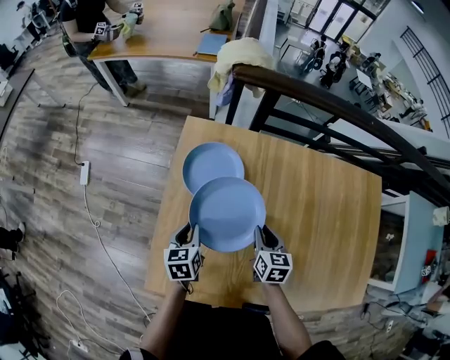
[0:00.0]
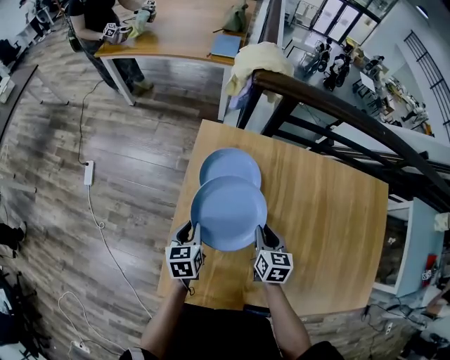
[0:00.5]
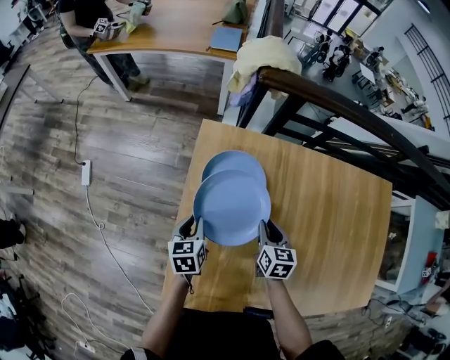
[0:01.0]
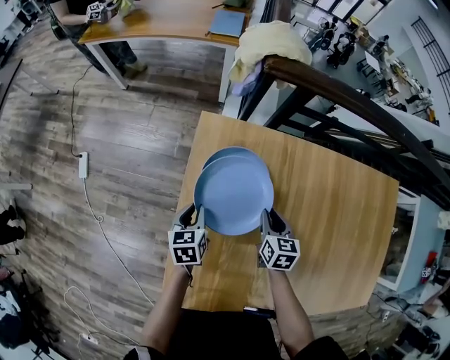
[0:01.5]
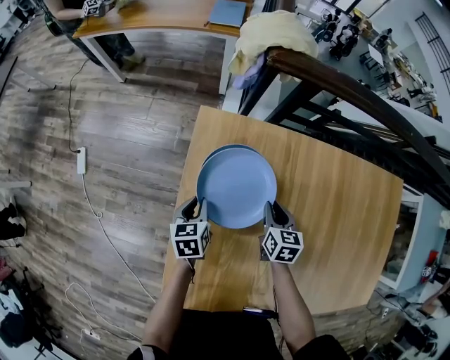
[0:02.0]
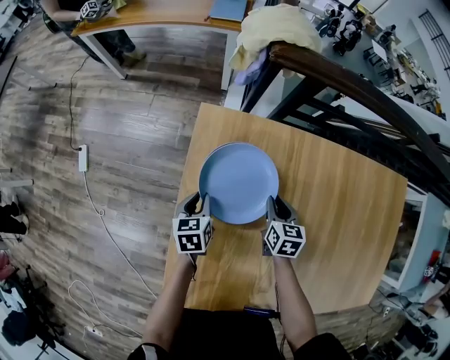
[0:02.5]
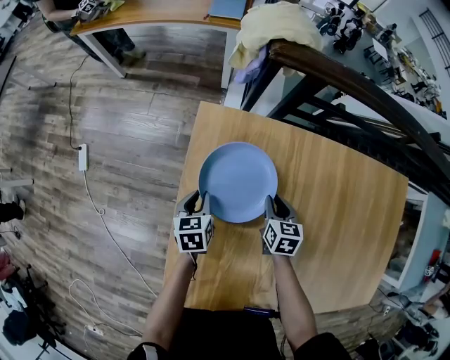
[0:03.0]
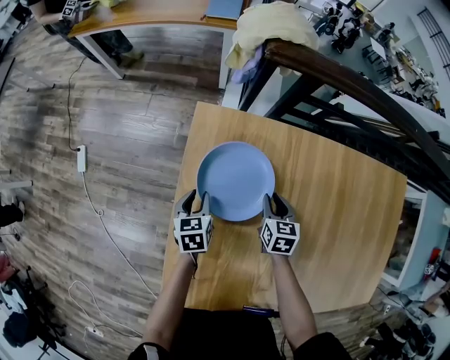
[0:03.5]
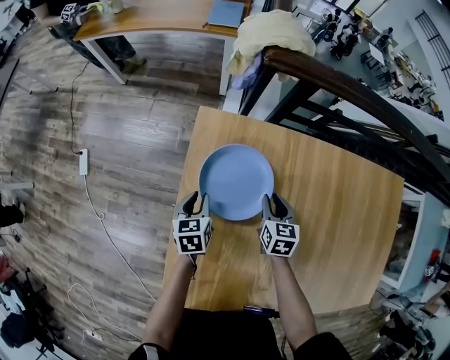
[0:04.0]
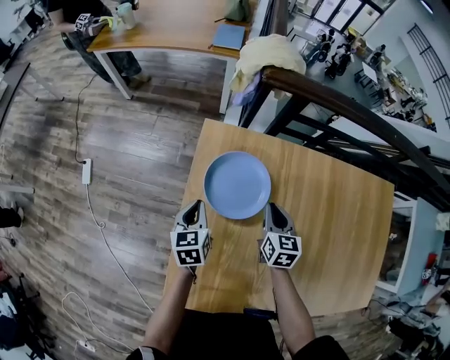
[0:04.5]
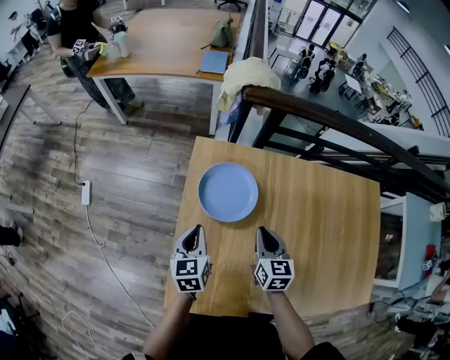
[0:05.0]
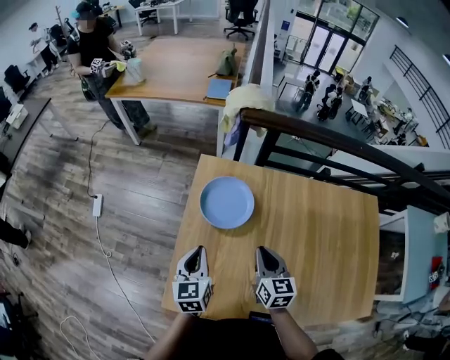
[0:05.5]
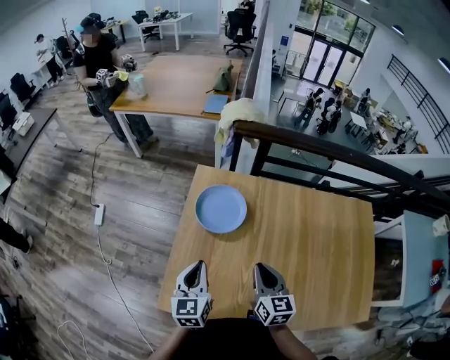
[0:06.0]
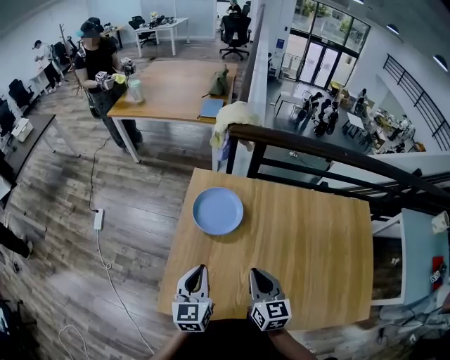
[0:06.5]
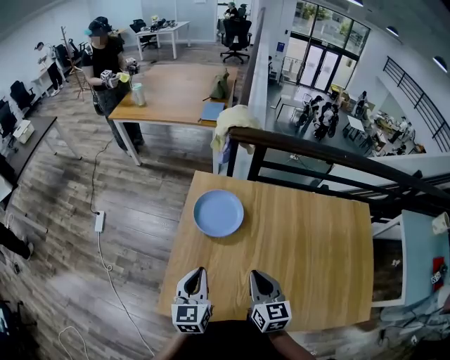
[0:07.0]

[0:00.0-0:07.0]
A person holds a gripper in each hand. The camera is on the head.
0:00.0 to 0:02.0: Both grippers travel together forward, downward and to the left, approximately 15 cm.
0:02.0 to 0:03.5: There are only small adjustments of the grippers.
0:03.5 to 0:05.0: Both grippers travel together upward and backward, some 20 cm. The left gripper closes its fingers.
0:05.0 to 0:07.0: The grippers both shift backward and upward by roughly 20 cm.

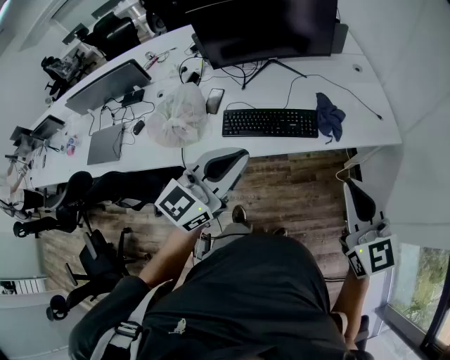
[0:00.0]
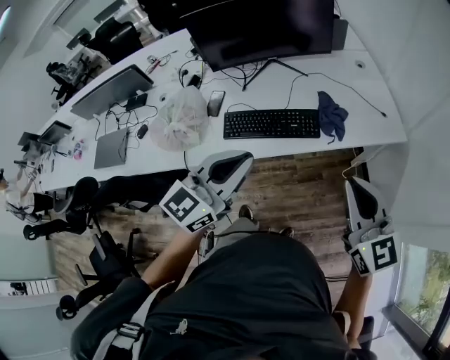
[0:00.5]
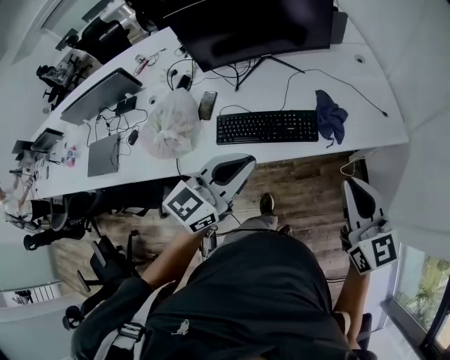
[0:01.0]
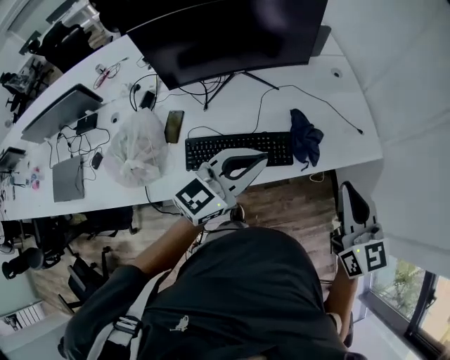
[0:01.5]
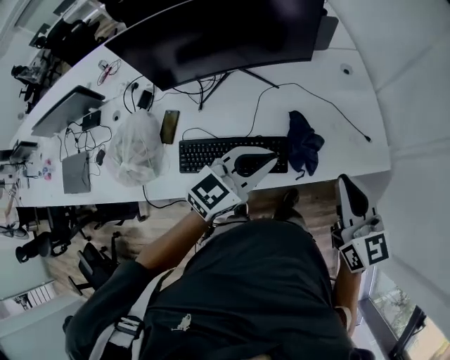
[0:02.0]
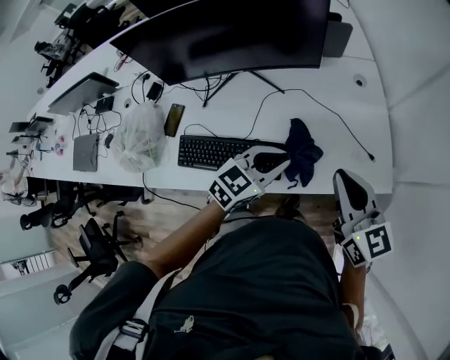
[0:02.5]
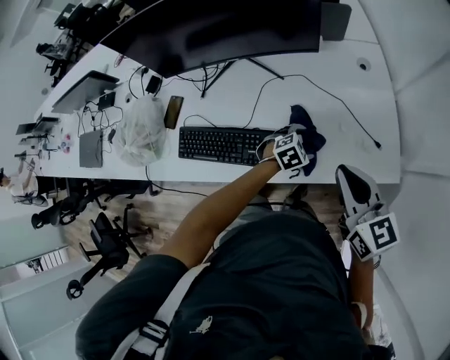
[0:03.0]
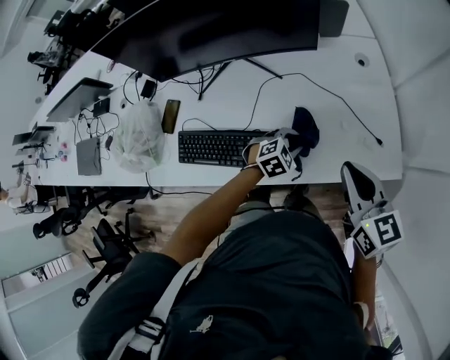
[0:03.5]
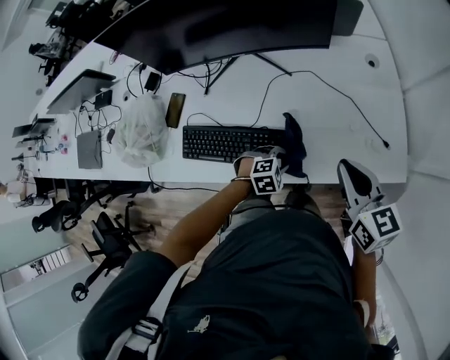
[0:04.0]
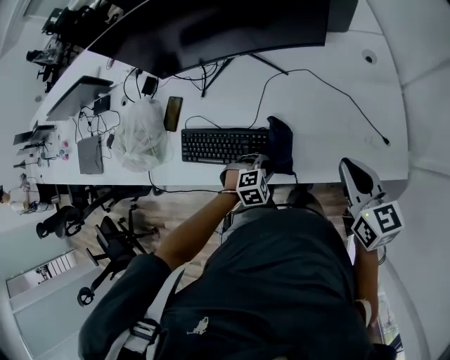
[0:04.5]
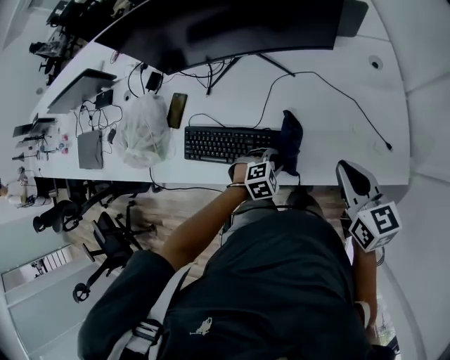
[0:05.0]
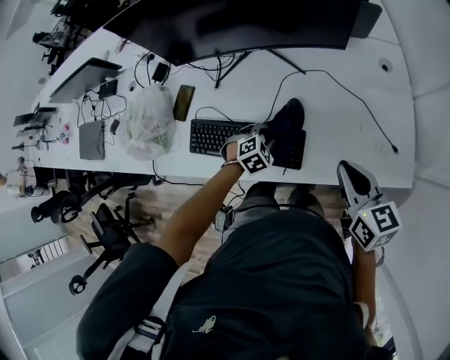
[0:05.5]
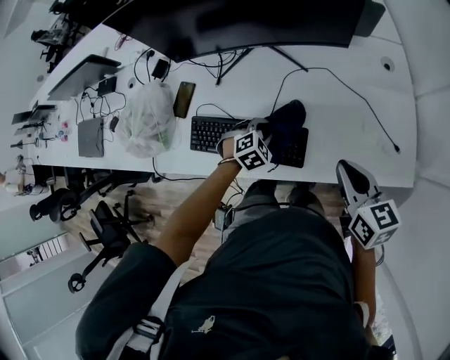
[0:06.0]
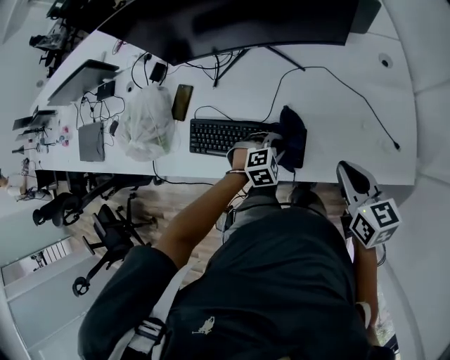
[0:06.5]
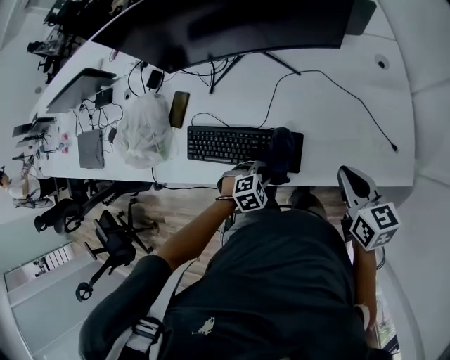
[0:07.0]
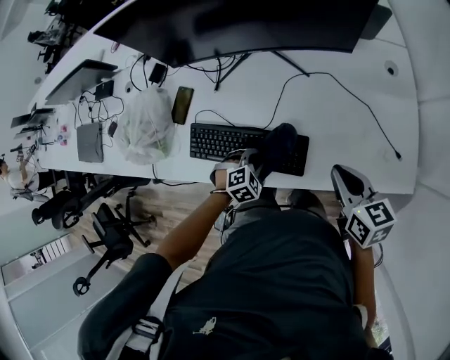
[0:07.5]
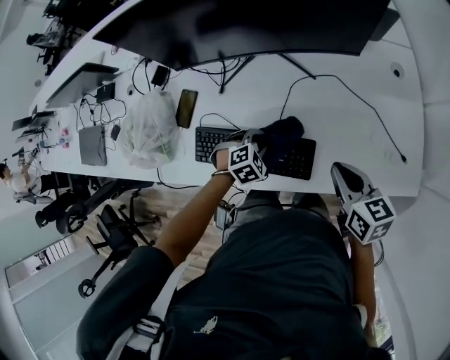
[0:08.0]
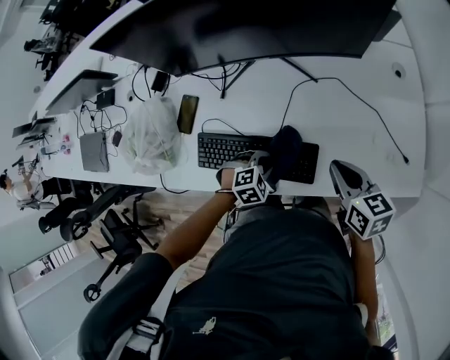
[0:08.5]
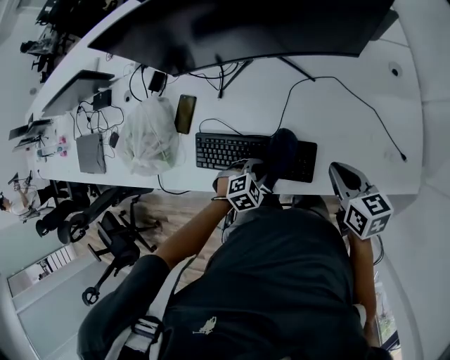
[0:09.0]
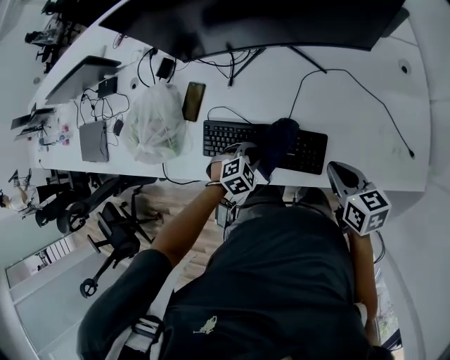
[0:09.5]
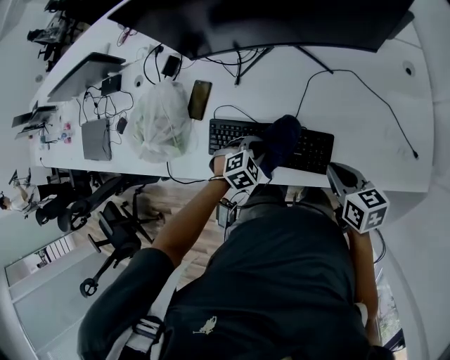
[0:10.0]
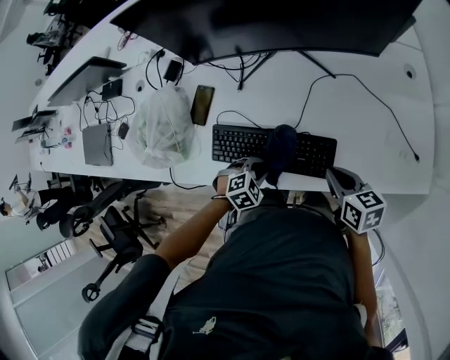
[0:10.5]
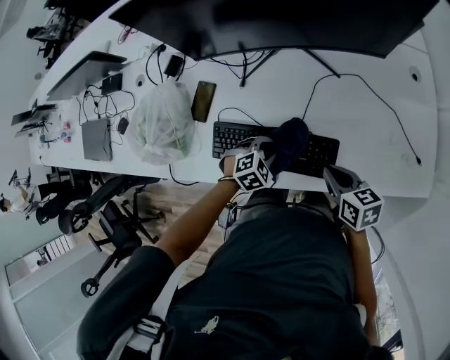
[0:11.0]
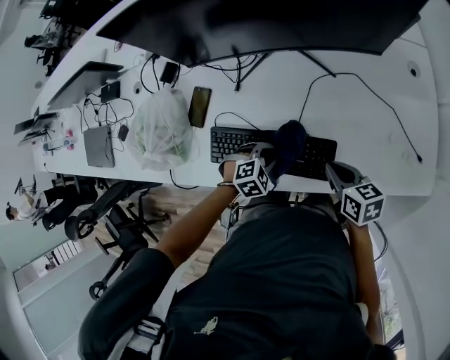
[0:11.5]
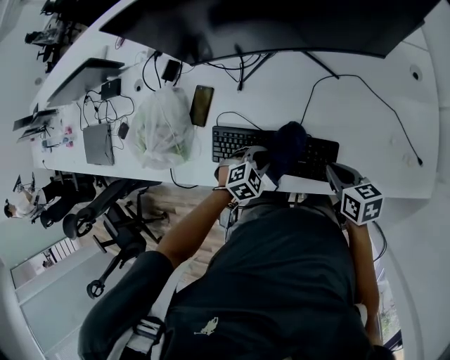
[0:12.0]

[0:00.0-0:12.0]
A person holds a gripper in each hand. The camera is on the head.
0:00.0 to 0:02.0: The right gripper travels forward by some 30 cm; the left gripper moves forward and to the right, roughly 30 cm, and rotates about 20 degrees.
0:02.0 to 0:04.0: The left gripper moves downward, roughly 30 cm, points its fingers approximately 50 degrees further downward, and opens and closes again. The right gripper heads downward and forward, covering about 10 cm, and changes its angle by approximately 20 degrees.
0:04.0 to 0:06.0: The right gripper ends up some 5 cm from where it was. Meanwhile the left gripper moves to the left and forward, approximately 15 cm.
0:06.0 to 0:08.0: The left gripper moves roughly 15 cm backward and comes back. Meanwhile the right gripper moves approximately 5 cm.
0:08.0 to 0:10.0: The left gripper moves to the left and backward, some 10 cm. Meanwhile the right gripper goes some 5 cm to the left.
0:10.0 to 0:12.0: The right gripper changes place by approximately 5 cm.

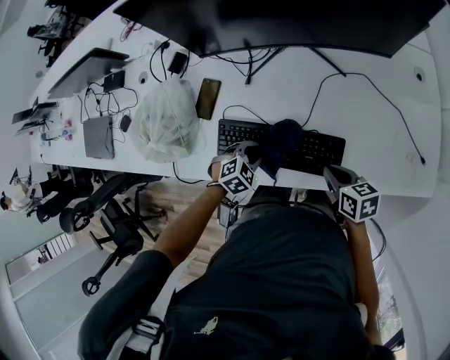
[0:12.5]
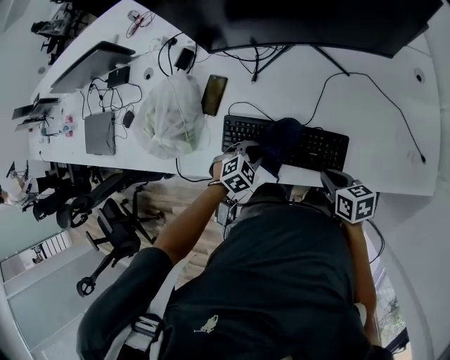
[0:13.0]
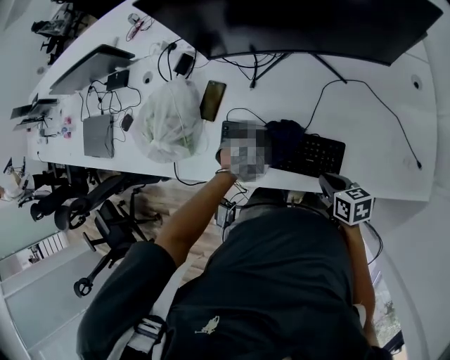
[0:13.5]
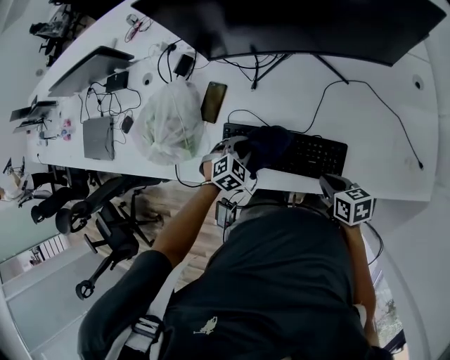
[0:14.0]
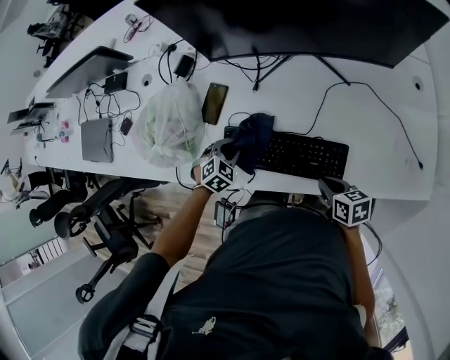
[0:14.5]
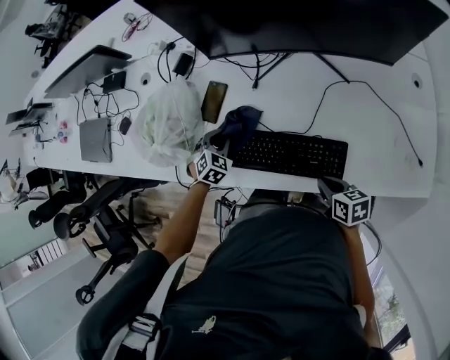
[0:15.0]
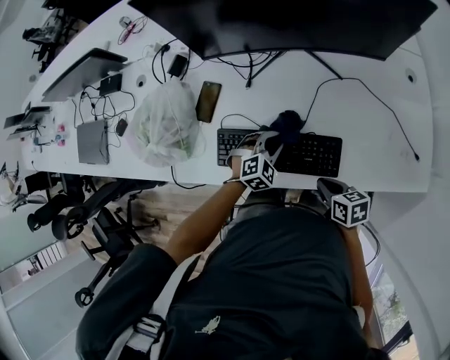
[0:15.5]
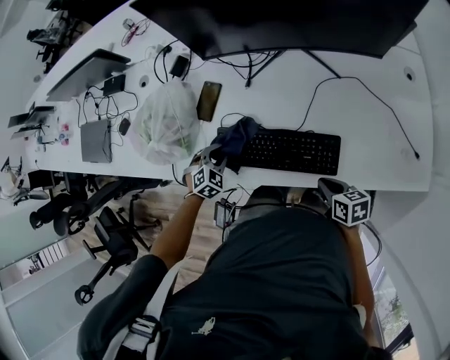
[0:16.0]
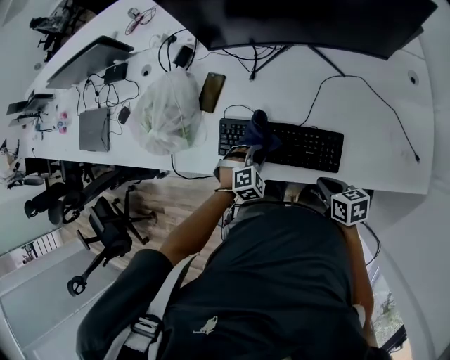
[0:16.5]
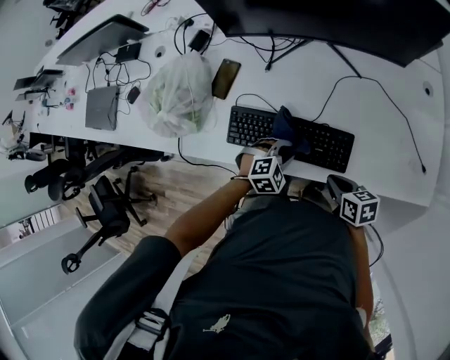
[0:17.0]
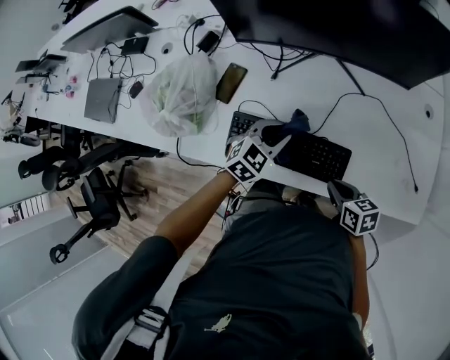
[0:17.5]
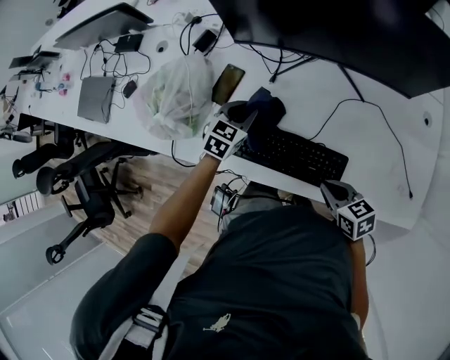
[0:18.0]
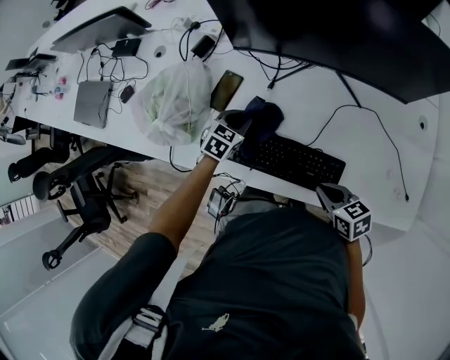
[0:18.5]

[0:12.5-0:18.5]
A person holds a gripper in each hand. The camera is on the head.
0:12.5 to 0:14.5: The left gripper shifts some 10 cm to the left and forward.
0:14.5 to 0:16.5: The left gripper swings left and right, approximately 20 cm each way, with 2 reversals.
0:16.5 to 0:18.5: The right gripper is displaced forward and upward by approximately 10 cm, and changes its angle by about 20 degrees, while the left gripper shifts roughly 20 cm forward and to the left, and twists about 50 degrees counterclockwise, seen from behind.

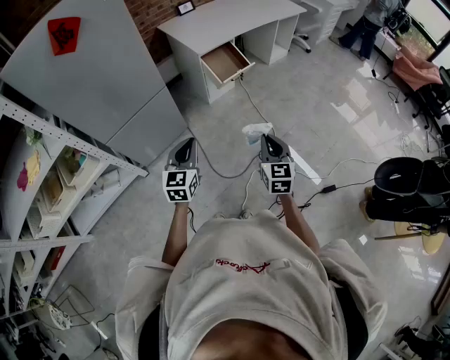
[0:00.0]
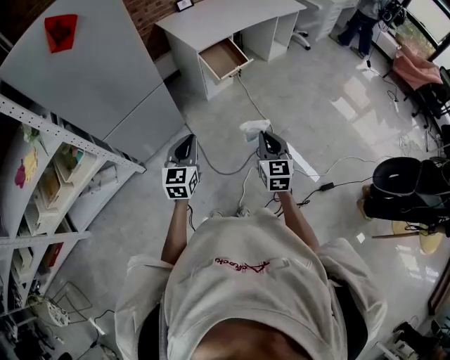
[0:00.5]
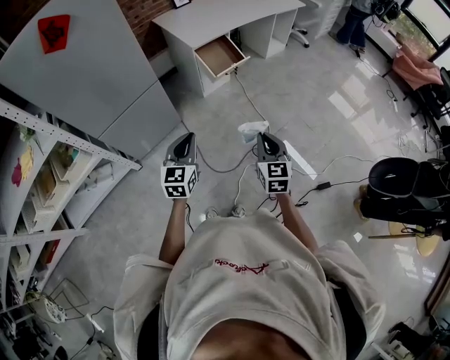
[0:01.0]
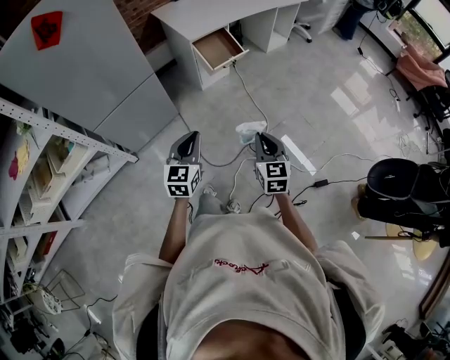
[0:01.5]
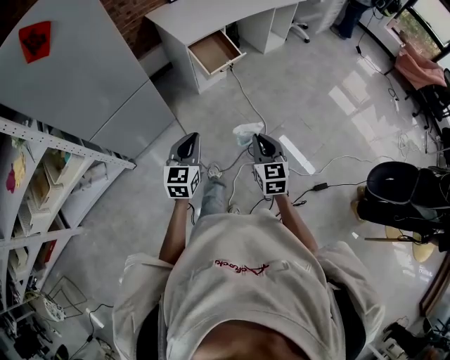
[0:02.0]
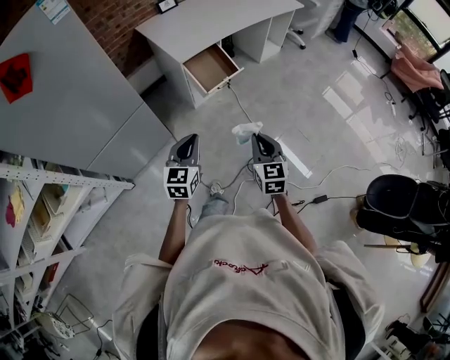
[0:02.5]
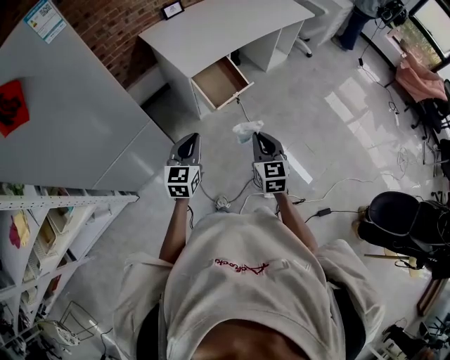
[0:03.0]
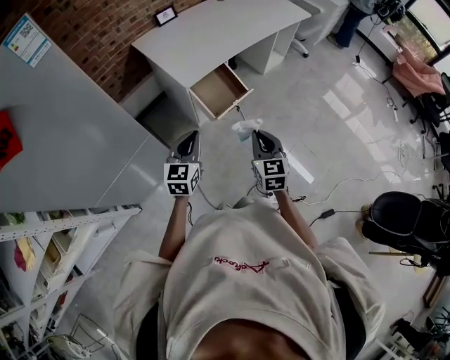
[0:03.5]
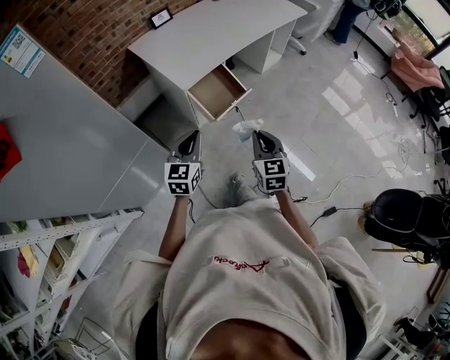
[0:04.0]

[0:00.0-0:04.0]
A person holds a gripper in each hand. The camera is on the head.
0:00.0 to 0:02.0: The right gripper moves some 5 cm; the left gripper is displaced to the right by roughly 10 cm.
0:02.0 to 0:04.0: The grippers both shift forward by about 35 cm.
